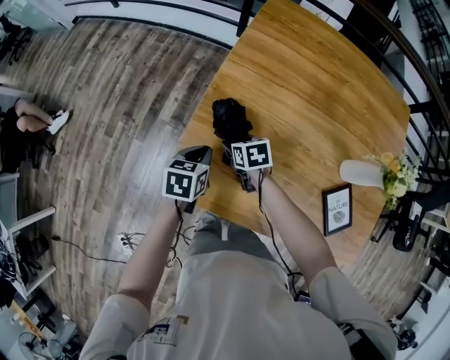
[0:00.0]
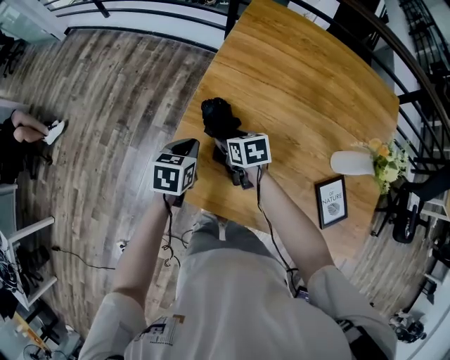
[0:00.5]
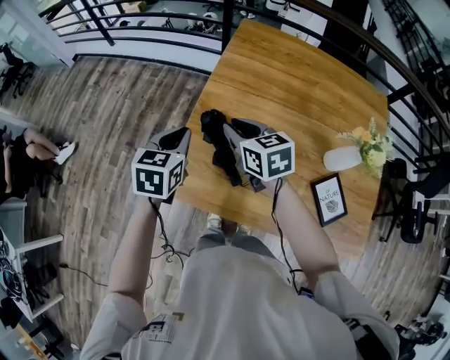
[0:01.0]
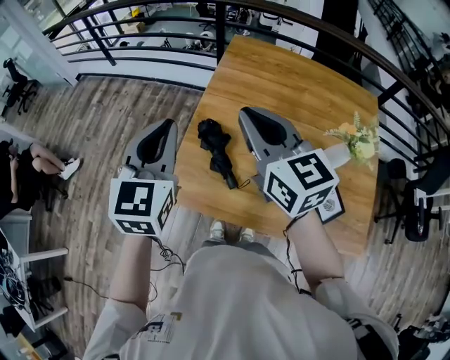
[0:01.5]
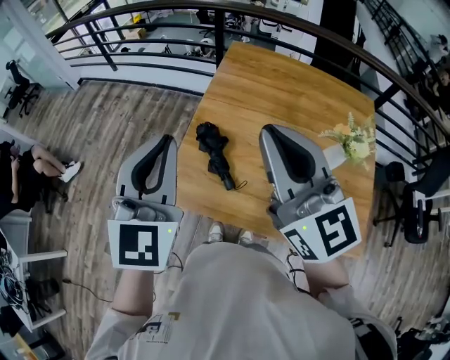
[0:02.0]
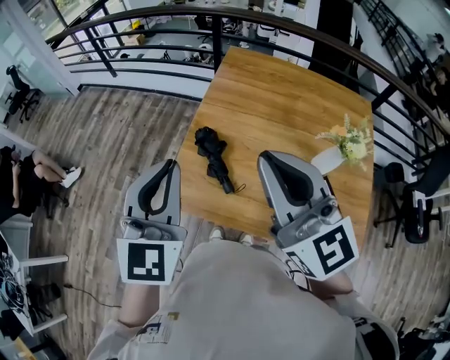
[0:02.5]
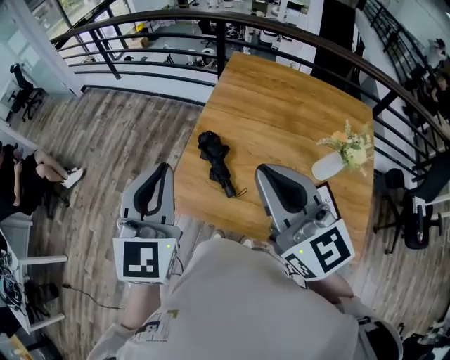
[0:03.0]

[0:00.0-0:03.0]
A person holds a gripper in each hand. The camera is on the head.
0:00.0 to 0:01.5: Both grippers move upward, some 40 cm. The right gripper tips its fingers upward by approximately 50 degrees, and closes up; the left gripper points its fingers roughly 40 degrees further upward.
0:01.5 to 0:03.0: The left gripper heads backward, covering approximately 10 cm. Meanwhile the right gripper goes some 15 cm backward and upward.

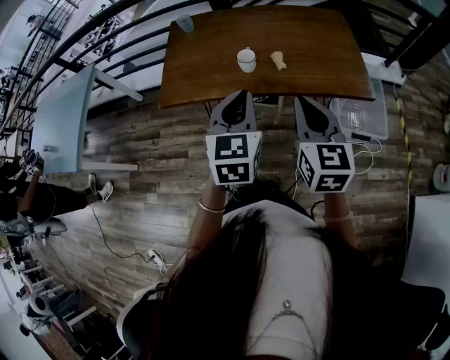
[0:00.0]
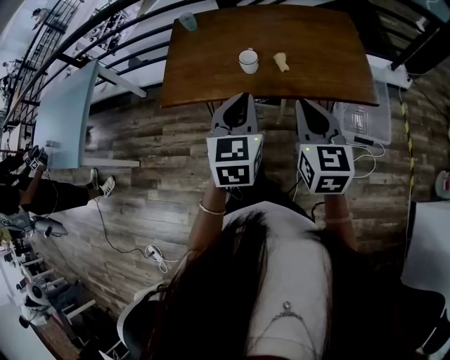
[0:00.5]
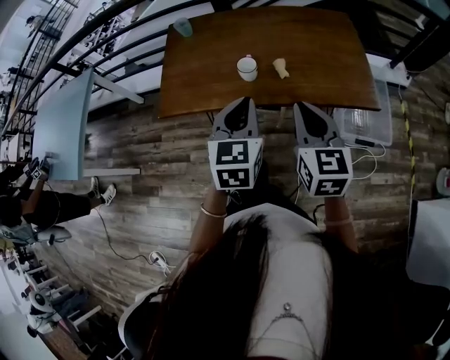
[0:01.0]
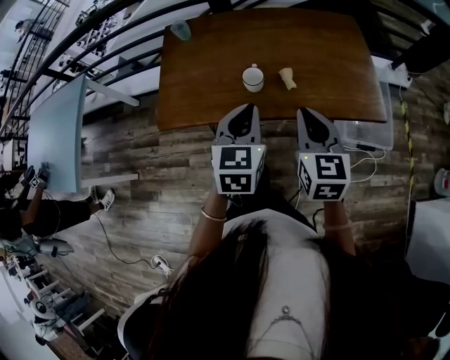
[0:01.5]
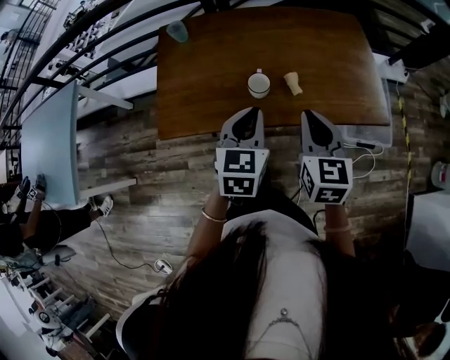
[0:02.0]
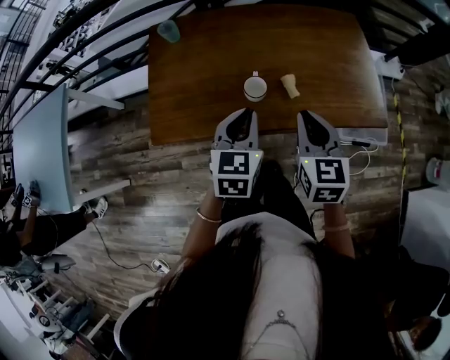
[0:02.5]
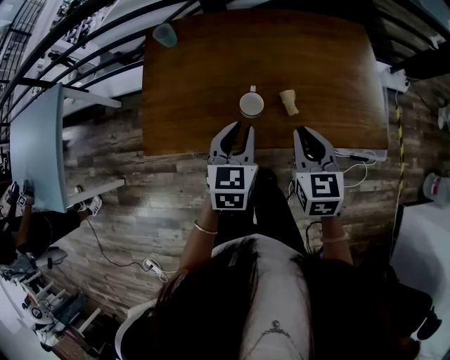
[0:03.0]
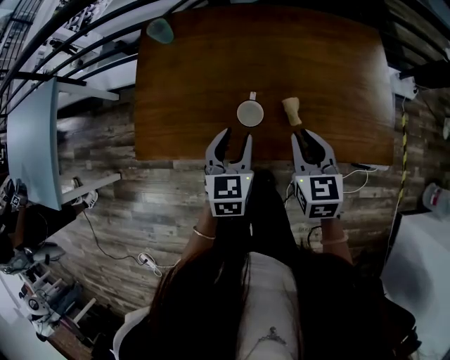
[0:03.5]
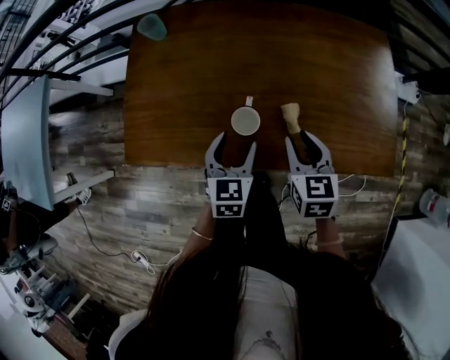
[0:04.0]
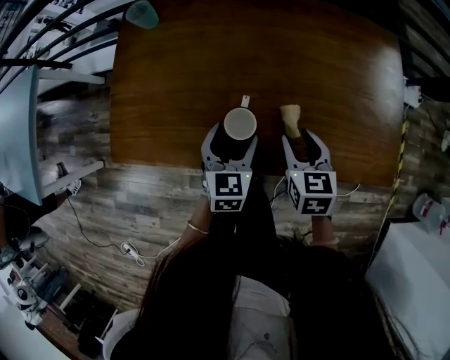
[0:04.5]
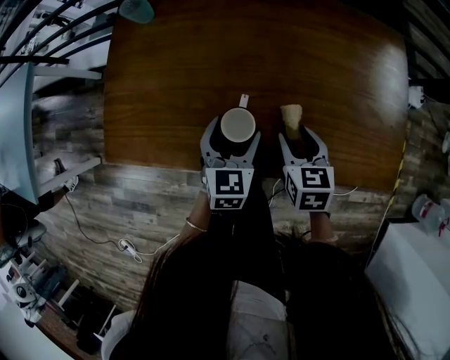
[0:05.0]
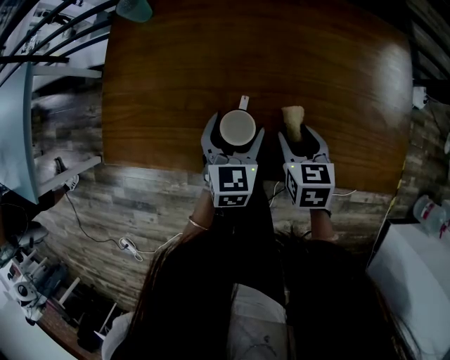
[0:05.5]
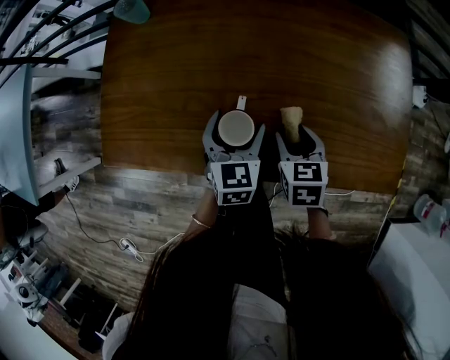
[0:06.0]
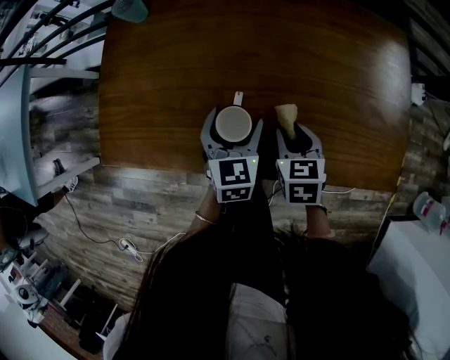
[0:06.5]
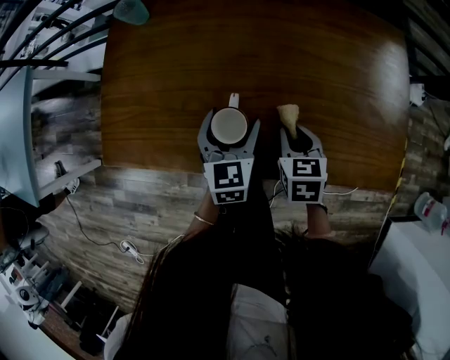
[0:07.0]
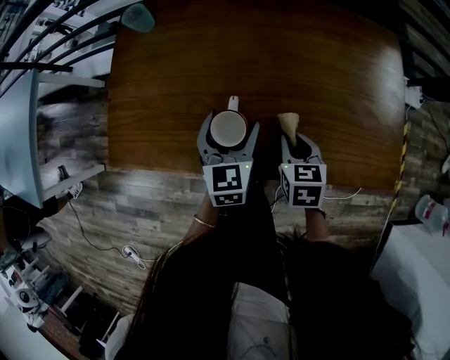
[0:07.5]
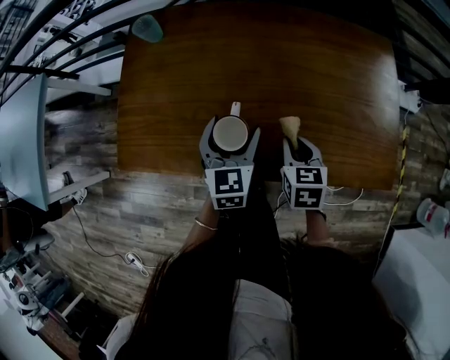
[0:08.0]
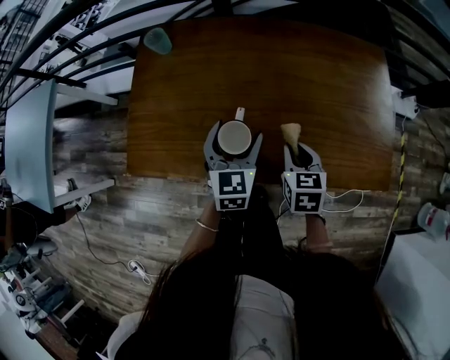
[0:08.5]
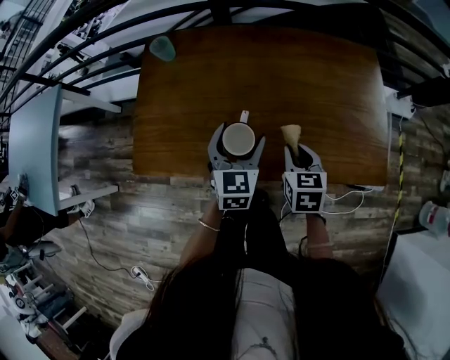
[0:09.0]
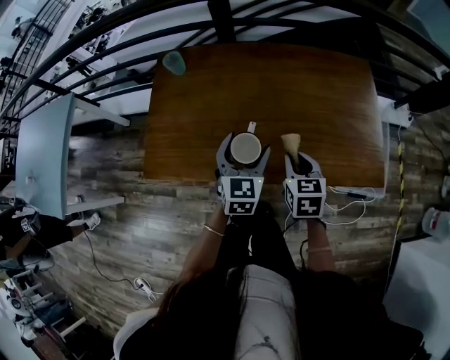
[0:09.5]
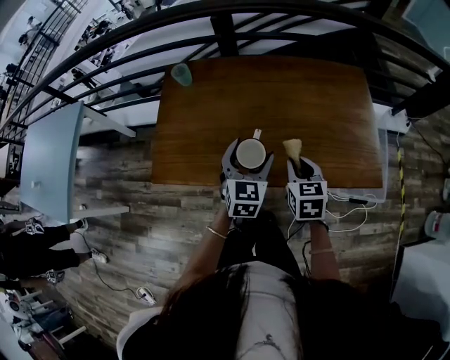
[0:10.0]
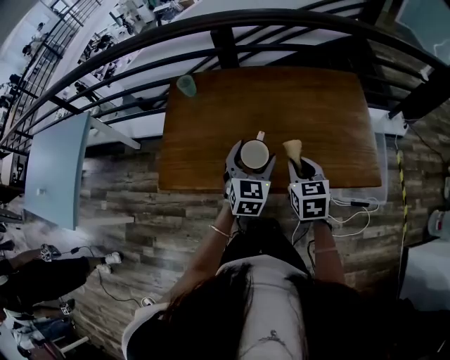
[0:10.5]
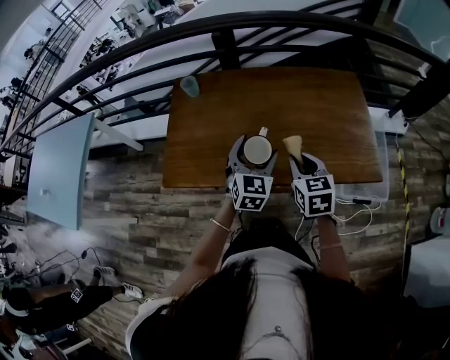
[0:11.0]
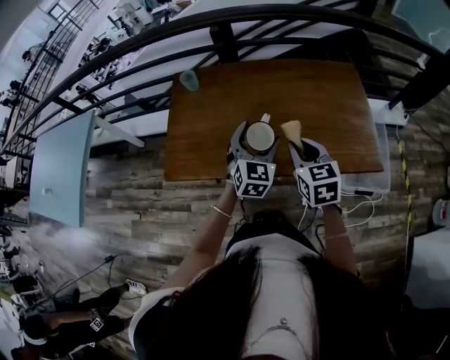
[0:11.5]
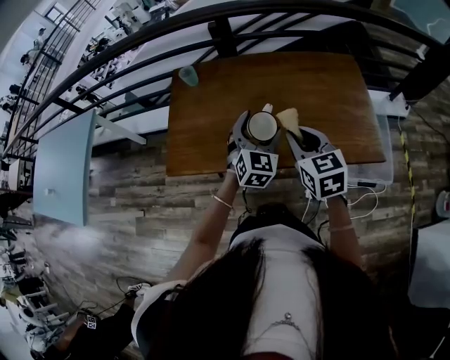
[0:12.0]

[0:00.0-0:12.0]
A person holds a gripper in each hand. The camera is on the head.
0:00.0 to 0:02.0: The left gripper is displaced forward and downward by about 15 cm. Meanwhile the right gripper heads forward, covering approximately 15 cm.
0:02.0 to 0:04.0: Both grippers move downward and forward, about 20 cm. The left gripper opens up, while the right gripper opens its fingers.
0:04.0 to 0:06.0: The right gripper is displaced downward by roughly 10 cm, and opens. Meanwhile the left gripper travels forward and downward by approximately 10 cm.
0:06.0 to 0:08.0: The right gripper closes its fingers. The left gripper heads upward, covering about 5 cm.
0:08.0 to 0:10.0: Both grippers travel together upward and backward, approximately 10 cm.
0:10.0 to 0:12.0: The right gripper is displaced upward by some 10 cm, while the left gripper is displaced upward by roughly 5 cm.

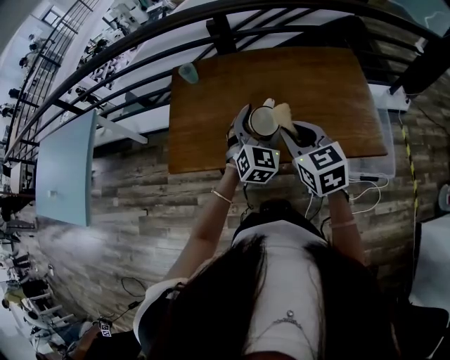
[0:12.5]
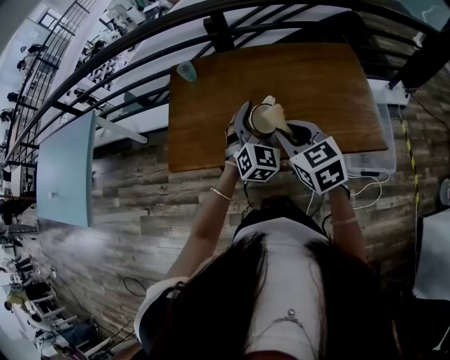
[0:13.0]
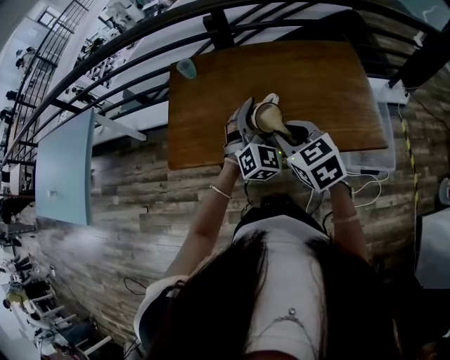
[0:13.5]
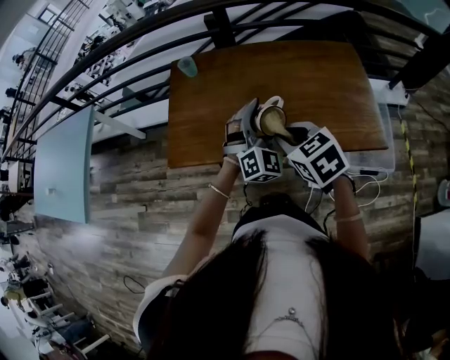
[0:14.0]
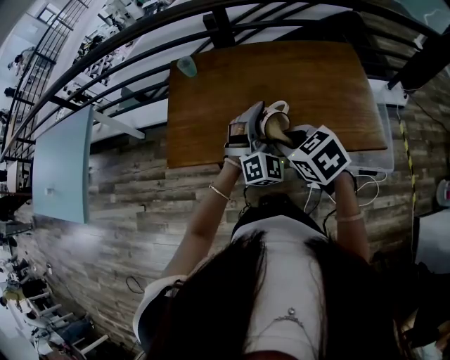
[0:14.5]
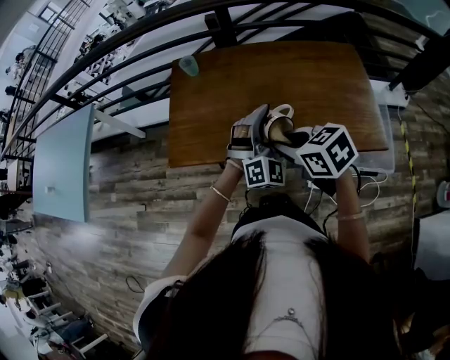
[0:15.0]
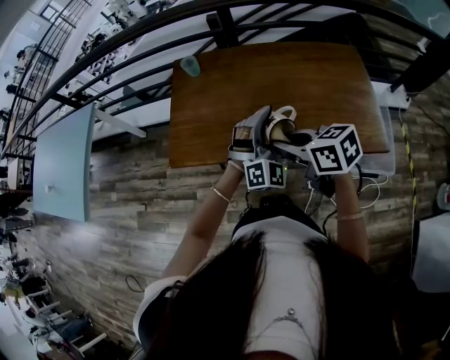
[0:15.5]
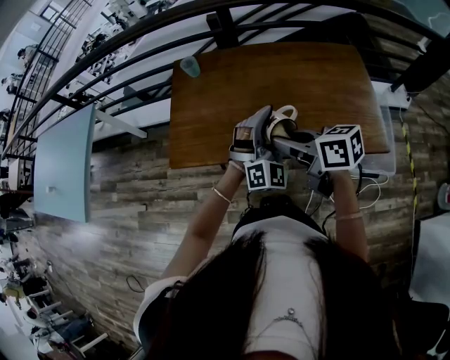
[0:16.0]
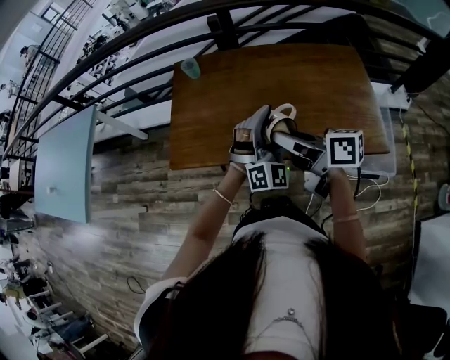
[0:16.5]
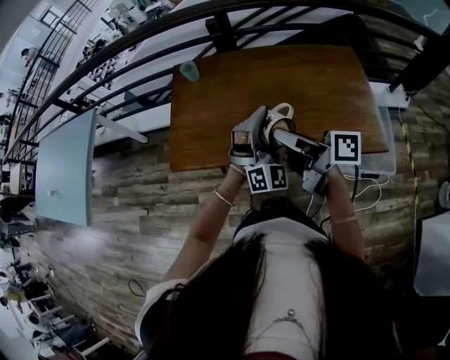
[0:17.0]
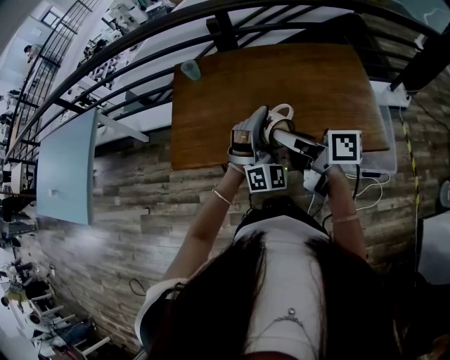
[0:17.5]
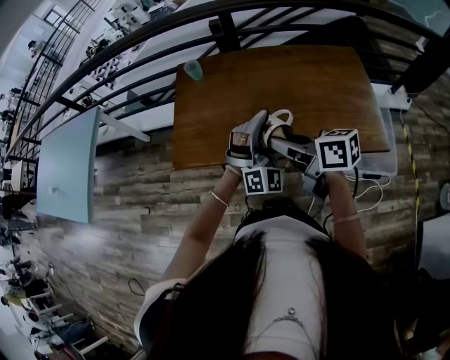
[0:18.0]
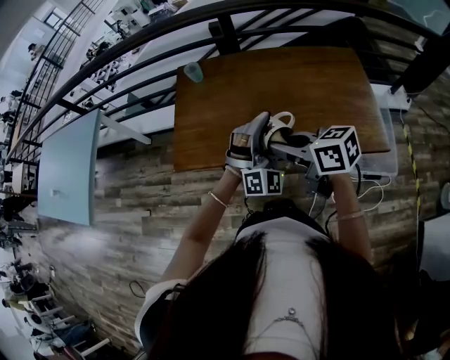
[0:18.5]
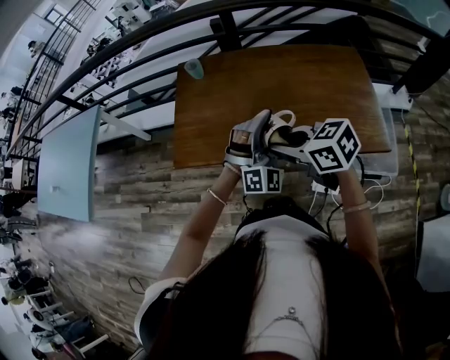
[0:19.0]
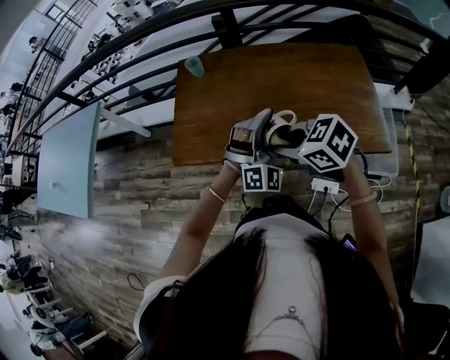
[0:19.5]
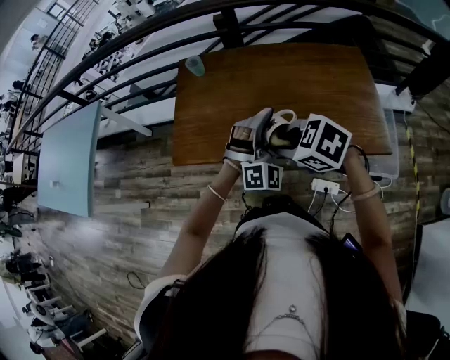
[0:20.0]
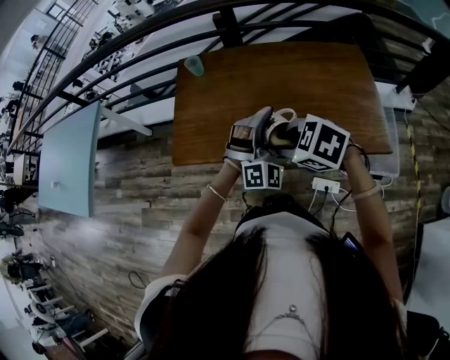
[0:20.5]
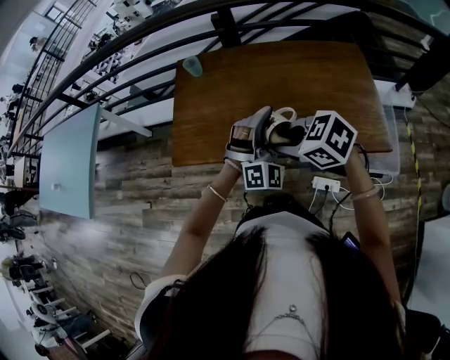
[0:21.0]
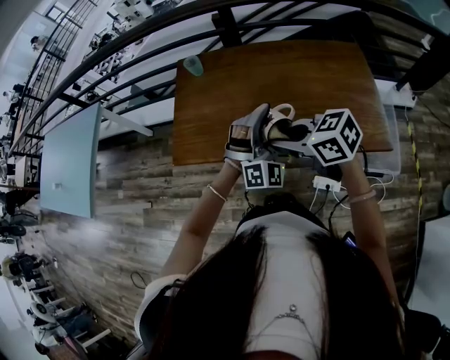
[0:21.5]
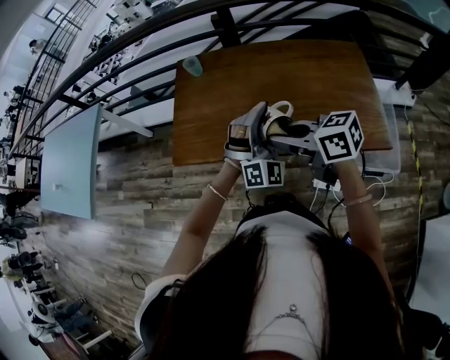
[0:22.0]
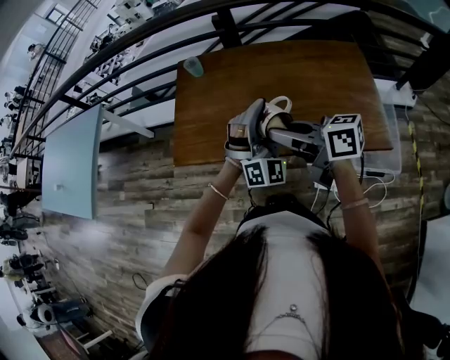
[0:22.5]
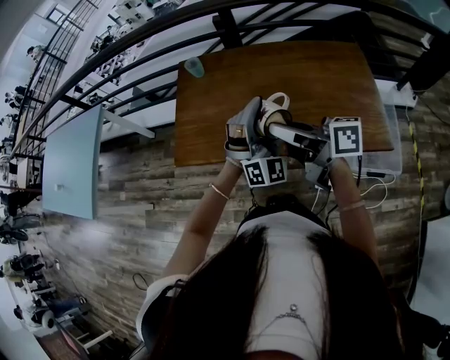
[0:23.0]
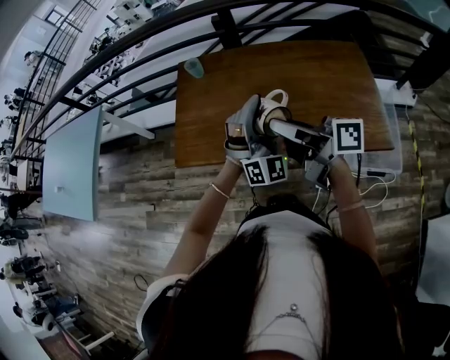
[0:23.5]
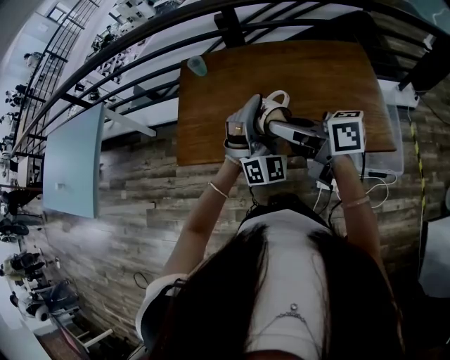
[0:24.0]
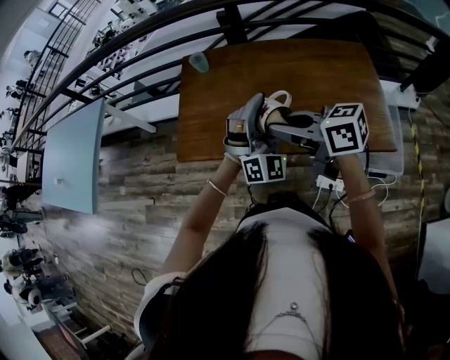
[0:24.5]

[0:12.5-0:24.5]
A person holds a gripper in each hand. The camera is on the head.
0:12.5 to 0:14.5: The right gripper changes place by about 5 cm, and turns by some 30 degrees. Meanwhile the left gripper rotates roughly 20 degrees.
0:14.5 to 0:16.5: The right gripper ends up about 5 cm from where it was, and angles its fingers upward, by approximately 40 degrees.
0:16.5 to 0:18.5: The right gripper changes its angle by about 20 degrees.
0:18.5 to 0:20.5: The right gripper angles its fingers downward, by some 30 degrees.
0:20.5 to 0:22.5: The right gripper heads upward, covering roughly 5 cm, and points its fingers about 50 degrees further upward.
